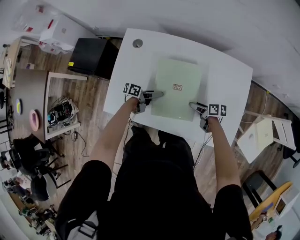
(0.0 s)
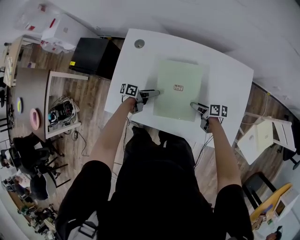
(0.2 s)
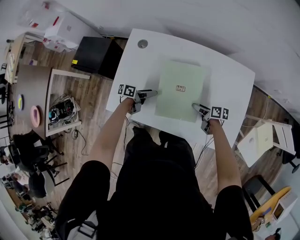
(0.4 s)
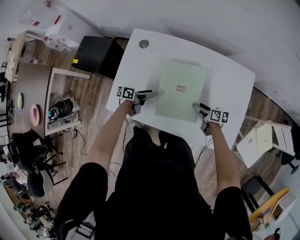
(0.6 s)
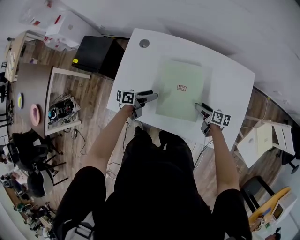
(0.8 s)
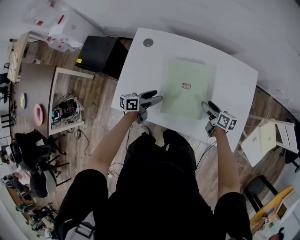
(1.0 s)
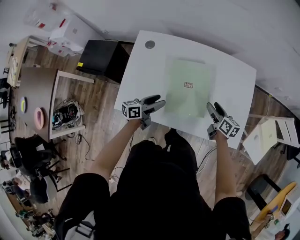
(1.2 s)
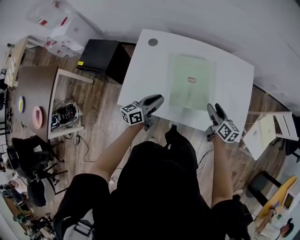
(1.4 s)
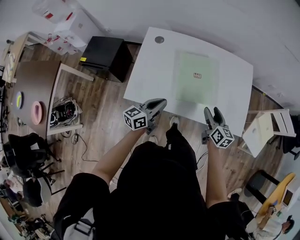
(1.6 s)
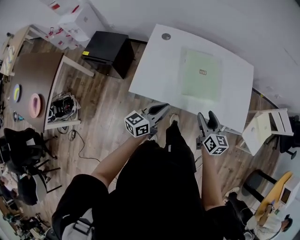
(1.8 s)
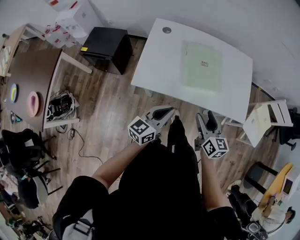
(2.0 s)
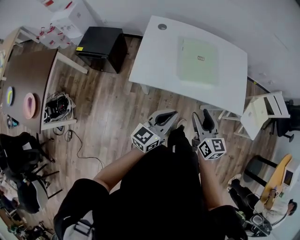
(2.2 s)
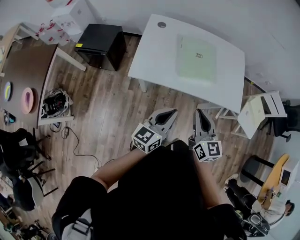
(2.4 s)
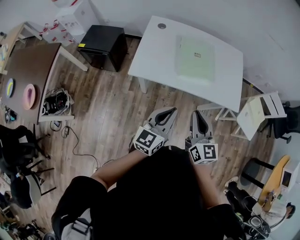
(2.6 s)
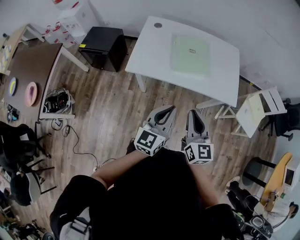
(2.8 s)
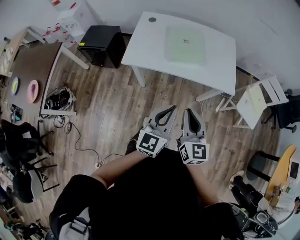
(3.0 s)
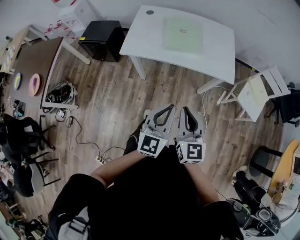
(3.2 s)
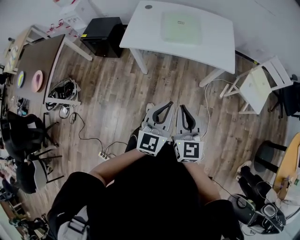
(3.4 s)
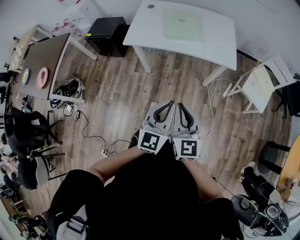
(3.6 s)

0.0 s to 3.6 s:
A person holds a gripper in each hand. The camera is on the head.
0.0 to 1.8 s: The right gripper ends up roughly 30 cm from where it was, and changes its angle by roughly 50 degrees.
1.8 to 3.6 s: The right gripper ends up some 40 cm from where it was, swivels roughly 30 degrees, and closes up.

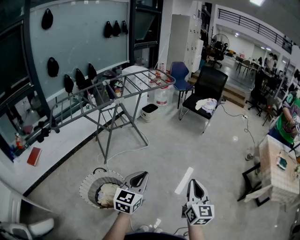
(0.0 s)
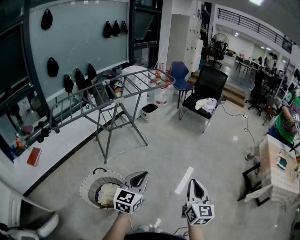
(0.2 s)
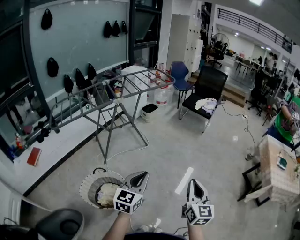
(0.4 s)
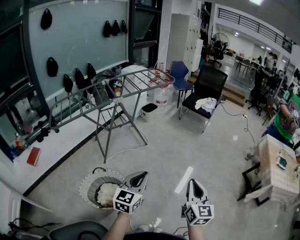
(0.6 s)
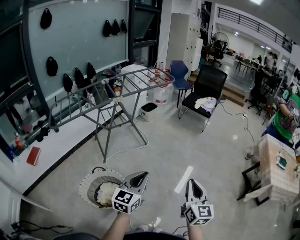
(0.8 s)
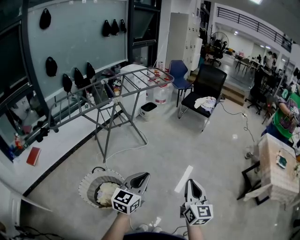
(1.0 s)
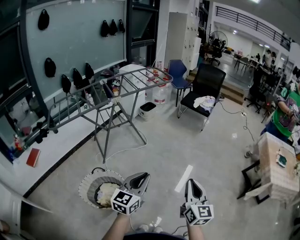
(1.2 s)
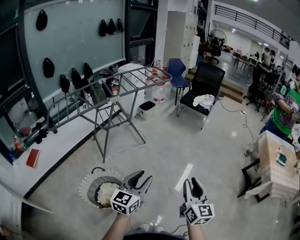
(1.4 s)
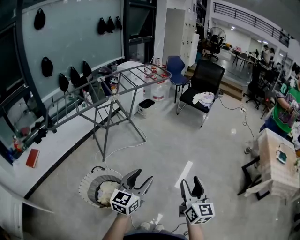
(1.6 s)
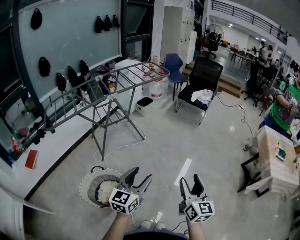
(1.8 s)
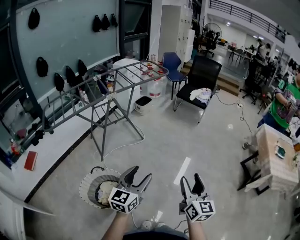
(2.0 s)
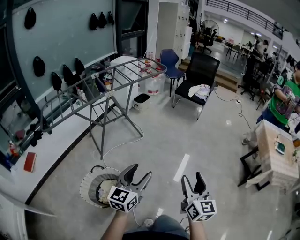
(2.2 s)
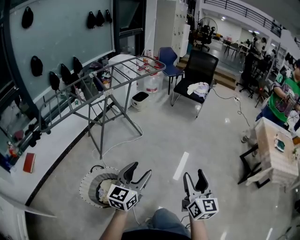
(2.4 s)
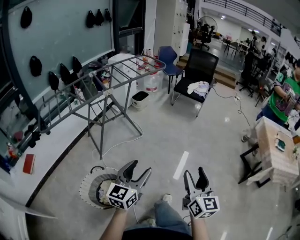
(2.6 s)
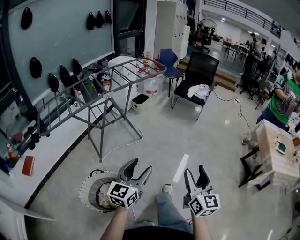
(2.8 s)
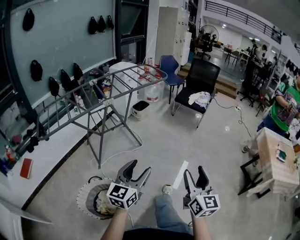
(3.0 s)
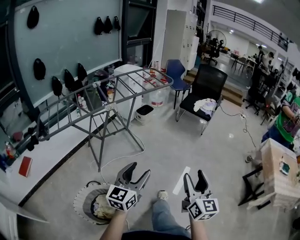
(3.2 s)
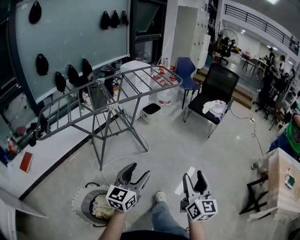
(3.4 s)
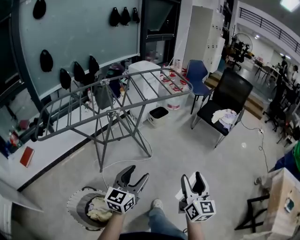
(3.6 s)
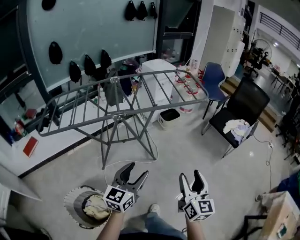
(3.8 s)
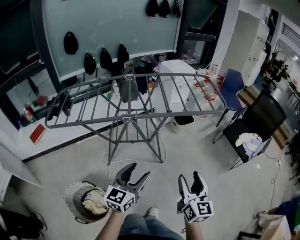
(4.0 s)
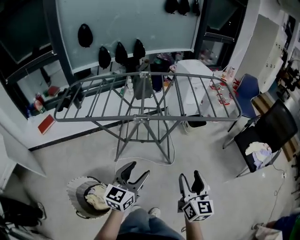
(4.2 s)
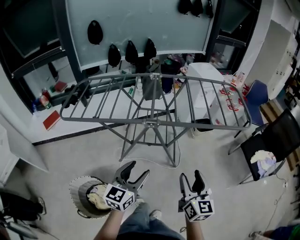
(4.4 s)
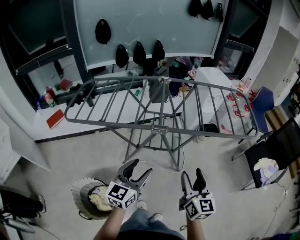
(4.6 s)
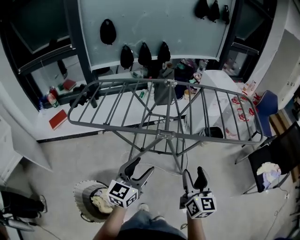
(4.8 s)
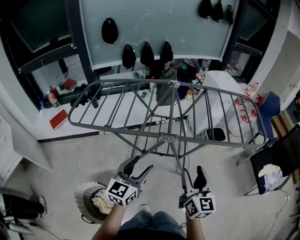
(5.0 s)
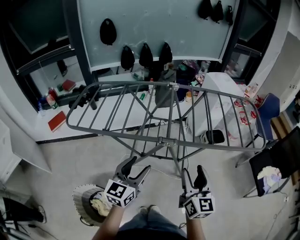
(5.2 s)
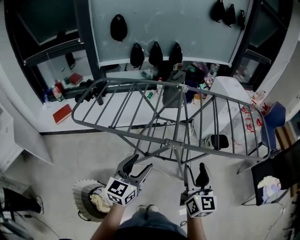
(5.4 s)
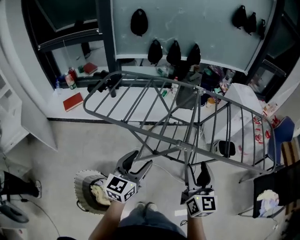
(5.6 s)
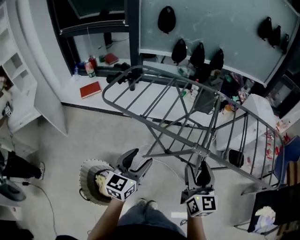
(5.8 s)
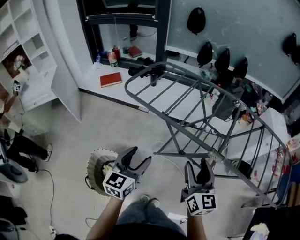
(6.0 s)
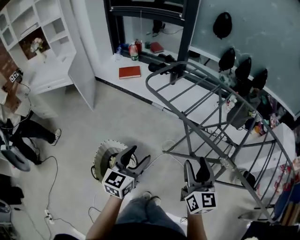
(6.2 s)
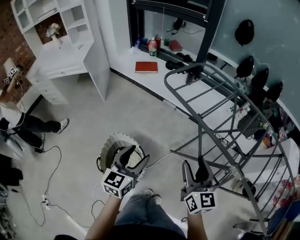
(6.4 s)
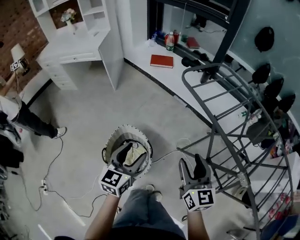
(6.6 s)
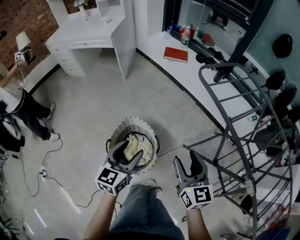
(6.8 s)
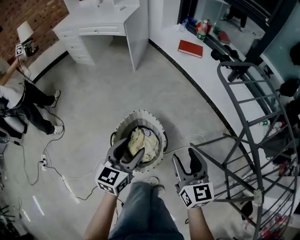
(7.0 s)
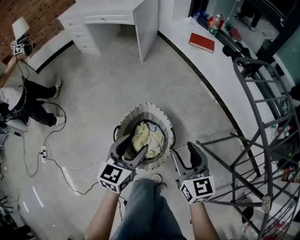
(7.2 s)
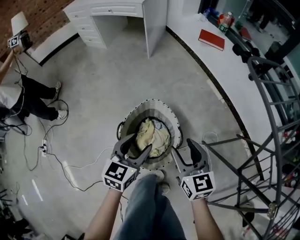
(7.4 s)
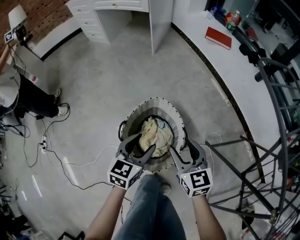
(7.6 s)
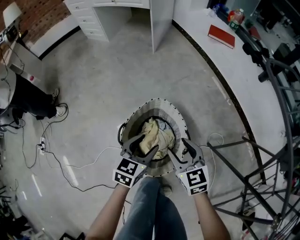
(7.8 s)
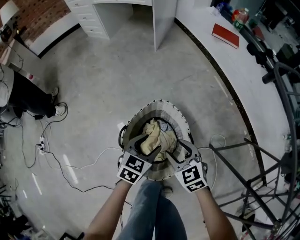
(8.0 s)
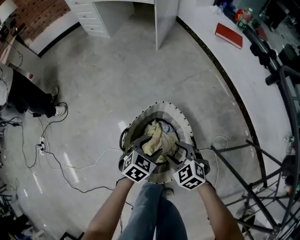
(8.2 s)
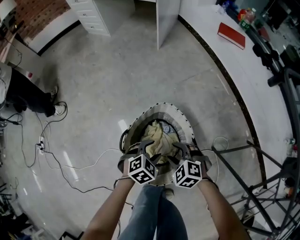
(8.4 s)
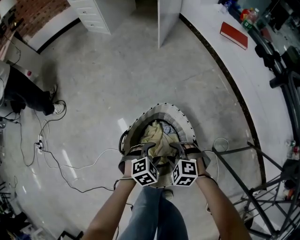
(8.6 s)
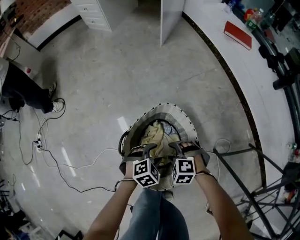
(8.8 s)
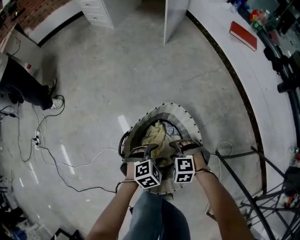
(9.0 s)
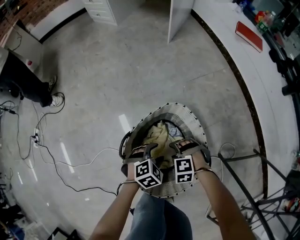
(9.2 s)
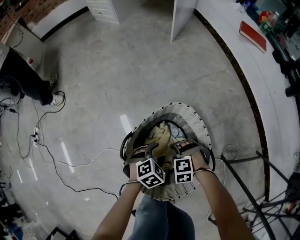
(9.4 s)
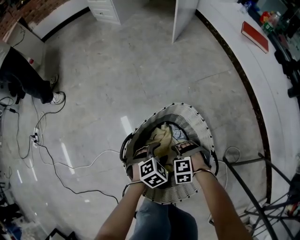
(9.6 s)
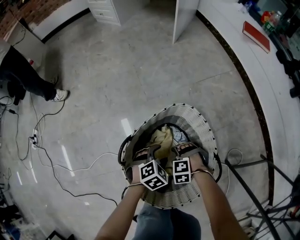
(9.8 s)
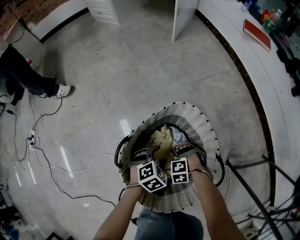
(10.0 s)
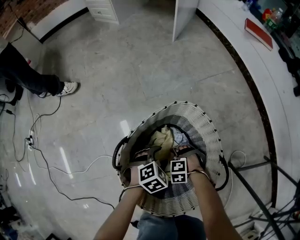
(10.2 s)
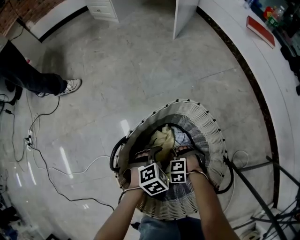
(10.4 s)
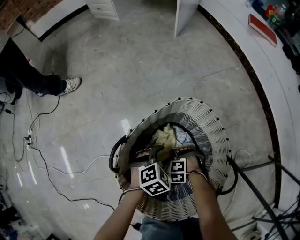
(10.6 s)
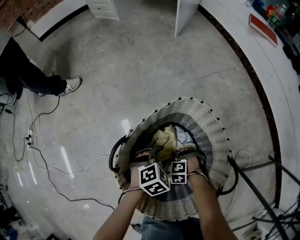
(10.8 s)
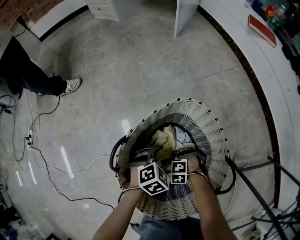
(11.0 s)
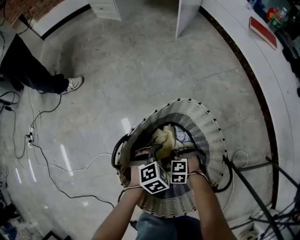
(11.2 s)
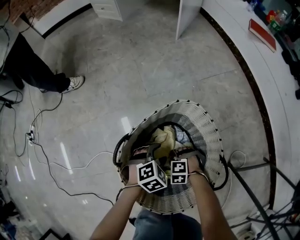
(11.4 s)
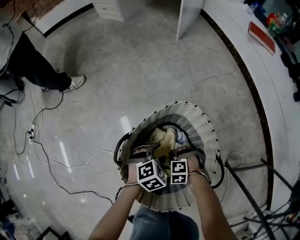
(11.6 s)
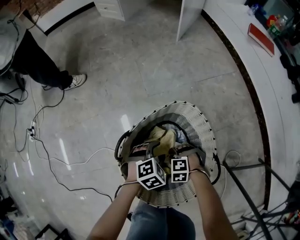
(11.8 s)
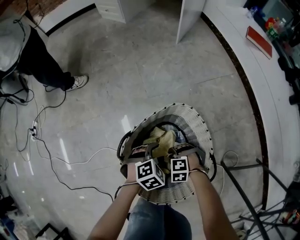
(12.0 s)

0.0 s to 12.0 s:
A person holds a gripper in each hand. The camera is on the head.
0.0 to 1.6 s: The left gripper opens its fingers; the right gripper opens.
1.6 to 3.0 s: The right gripper shifts roughly 10 cm forward. Meanwhile the left gripper heads forward and to the left, covering roughly 10 cm.
3.0 to 4.4 s: The left gripper changes place by some 40 cm, and rotates approximately 40 degrees, while the right gripper shifts by roughly 50 cm, and turns by roughly 40 degrees.
4.4 to 6.0 s: The left gripper moves roughly 25 cm, and rotates about 40 degrees; the right gripper changes place by approximately 30 cm, and rotates about 40 degrees.
6.0 to 7.6 s: The left gripper shifts by approximately 40 cm, and changes its angle by roughly 40 degrees. The right gripper changes place by about 50 cm, and rotates roughly 70 degrees.
7.6 to 9.0 s: The two grippers go about 30 cm downward. The left gripper angles its fingers downward, by some 30 degrees; the right gripper points its fingers roughly 50 degrees further downward.
9.0 to 10.4 s: The right gripper shifts about 25 cm downward. The left gripper goes roughly 15 cm downward.
10.4 to 12.0 s: Both grippers travel together upward, roughly 10 cm. The right gripper closes.

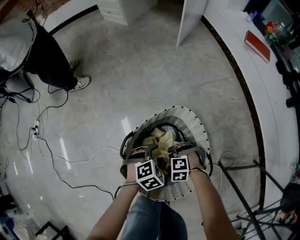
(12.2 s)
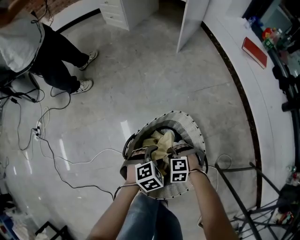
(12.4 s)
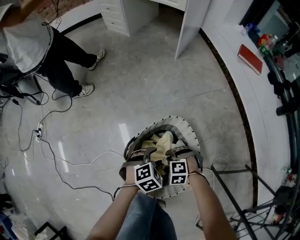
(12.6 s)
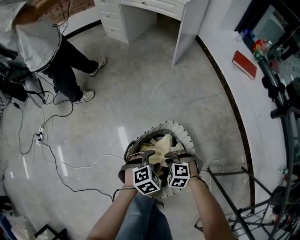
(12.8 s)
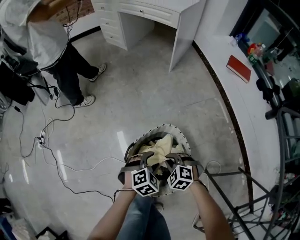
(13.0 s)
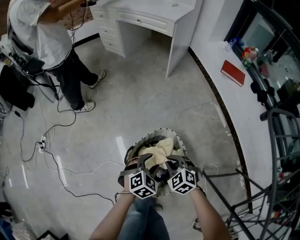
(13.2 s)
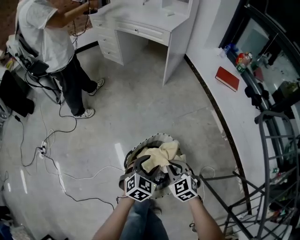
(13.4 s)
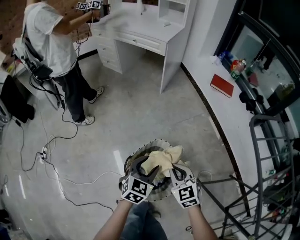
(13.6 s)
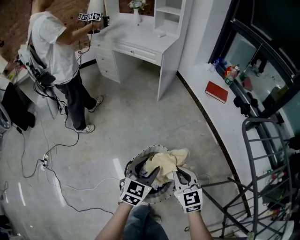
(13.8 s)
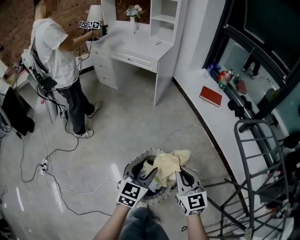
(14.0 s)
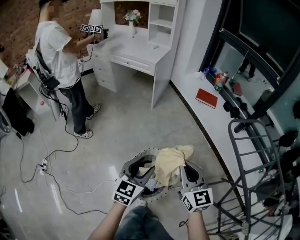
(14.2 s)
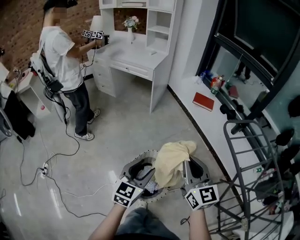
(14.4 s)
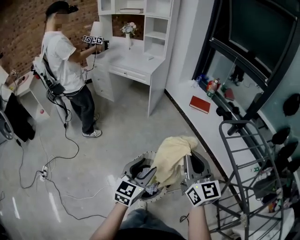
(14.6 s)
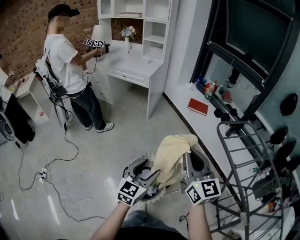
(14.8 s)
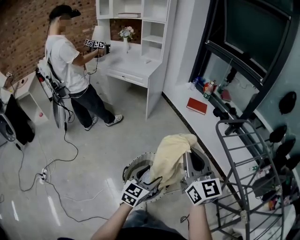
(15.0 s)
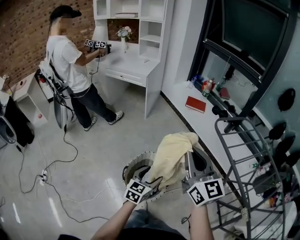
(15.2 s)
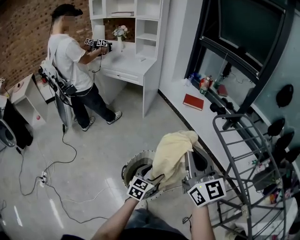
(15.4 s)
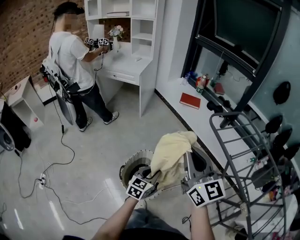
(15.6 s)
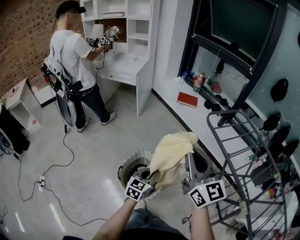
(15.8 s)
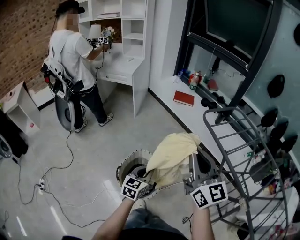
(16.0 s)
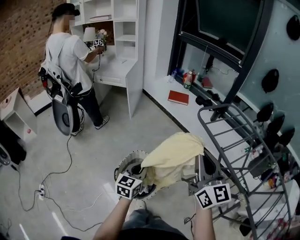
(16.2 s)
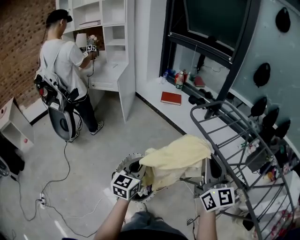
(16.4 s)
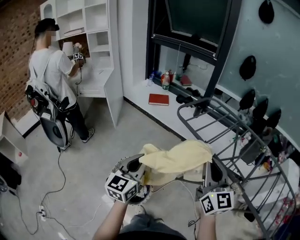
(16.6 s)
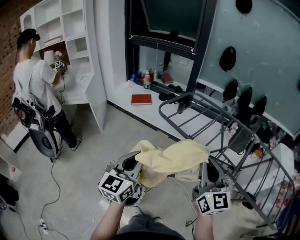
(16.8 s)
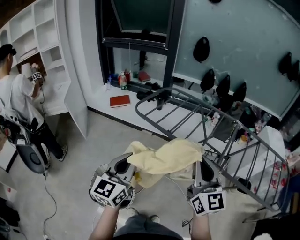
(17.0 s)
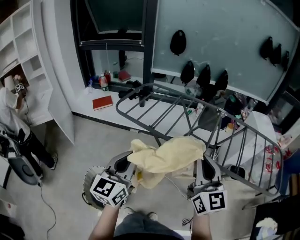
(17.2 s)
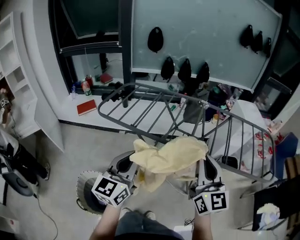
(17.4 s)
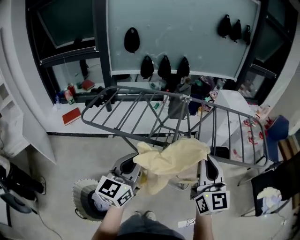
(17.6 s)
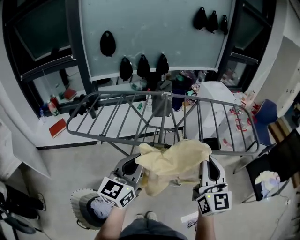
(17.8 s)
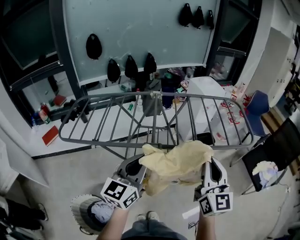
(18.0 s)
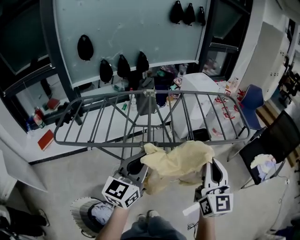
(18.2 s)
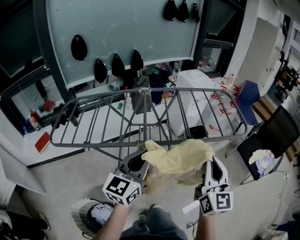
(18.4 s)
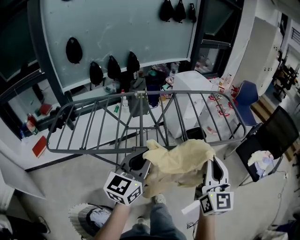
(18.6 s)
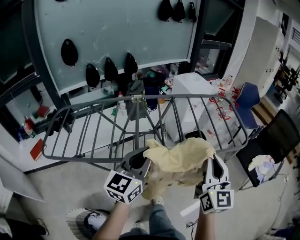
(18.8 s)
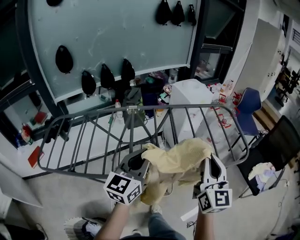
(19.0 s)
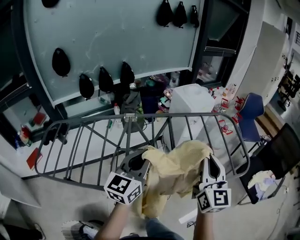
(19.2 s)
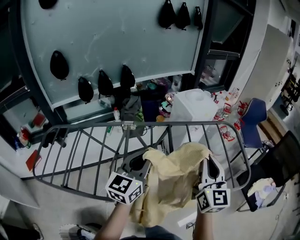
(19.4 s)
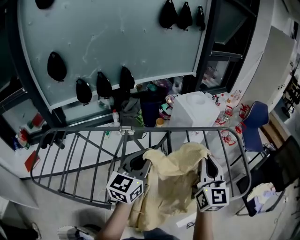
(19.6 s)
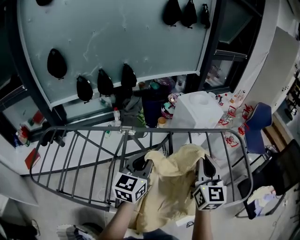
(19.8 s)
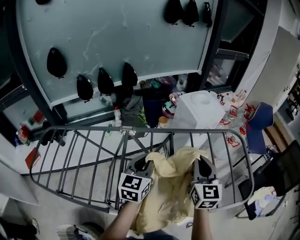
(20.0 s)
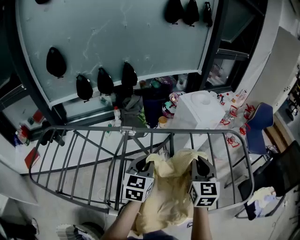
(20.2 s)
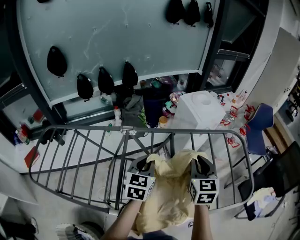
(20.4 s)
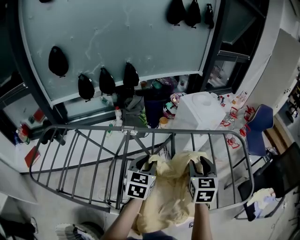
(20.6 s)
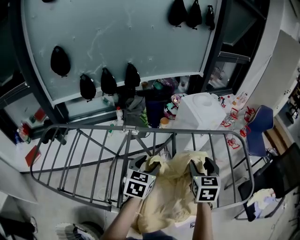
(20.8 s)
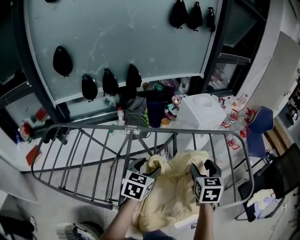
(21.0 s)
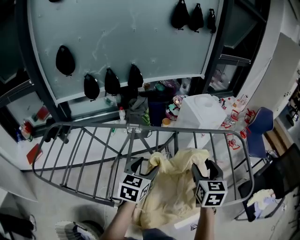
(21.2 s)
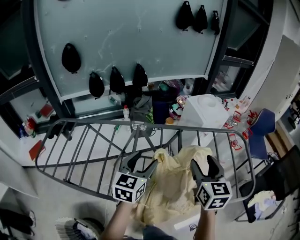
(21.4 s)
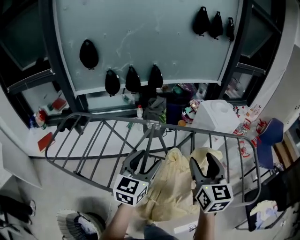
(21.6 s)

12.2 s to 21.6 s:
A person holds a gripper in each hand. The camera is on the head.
12.2 to 13.8 s: Both grippers move upward, roughly 50 cm. The right gripper tips its fingers upward by roughly 50 degrees. Meanwhile the left gripper tilts its fingers roughly 40 degrees upward.
13.8 to 15.4 s: The right gripper moves upward, about 30 cm, and swivels some 30 degrees. Meanwhile the left gripper travels backward and to the right by about 10 cm, and goes upward and returns, roughly 15 cm each way.
15.4 to 17.0 s: The right gripper changes place by some 30 cm, and swivels approximately 50 degrees, while the left gripper travels upward by roughly 25 cm, turns by some 40 degrees, and closes up.
17.0 to 18.4 s: The left gripper changes place by some 35 cm, and turns by approximately 50 degrees, while the right gripper ends up about 35 cm from where it was, and swivels roughly 50 degrees.
18.4 to 20.0 s: The pair of grippers is taken forward, roughly 40 cm.
20.0 to 21.6 s: The right gripper goes some 15 cm to the left, backward and upward, and opens up; the left gripper is displaced backward and to the left by approximately 15 cm, and opens up.
